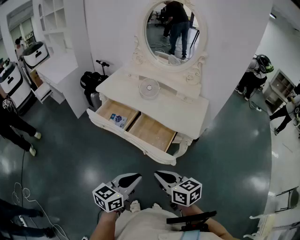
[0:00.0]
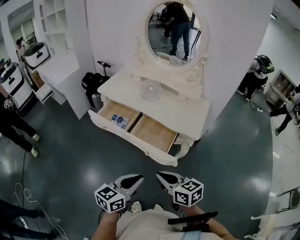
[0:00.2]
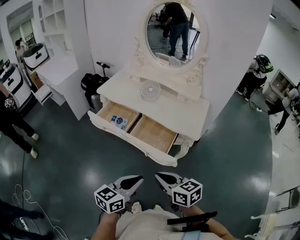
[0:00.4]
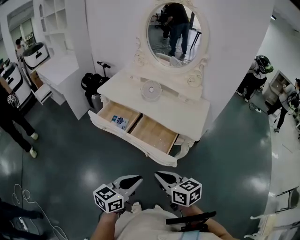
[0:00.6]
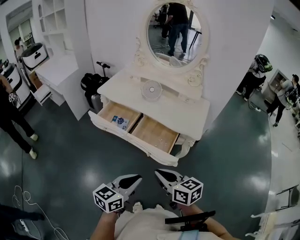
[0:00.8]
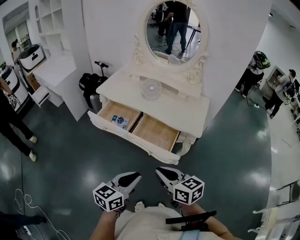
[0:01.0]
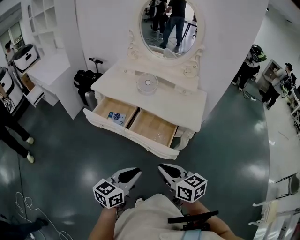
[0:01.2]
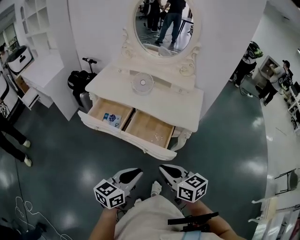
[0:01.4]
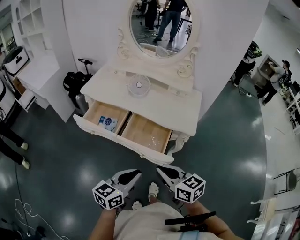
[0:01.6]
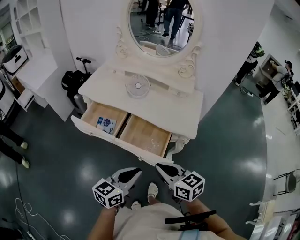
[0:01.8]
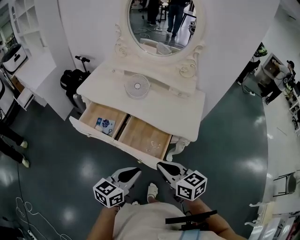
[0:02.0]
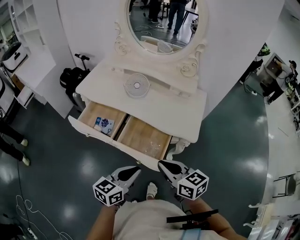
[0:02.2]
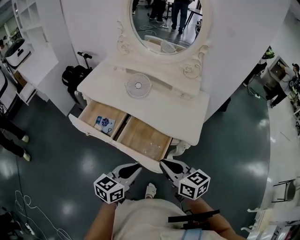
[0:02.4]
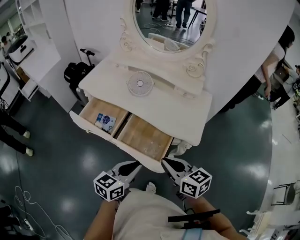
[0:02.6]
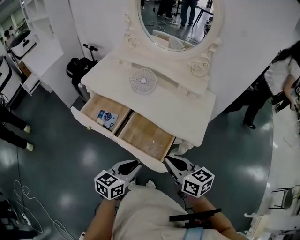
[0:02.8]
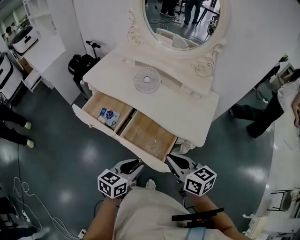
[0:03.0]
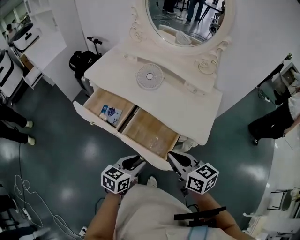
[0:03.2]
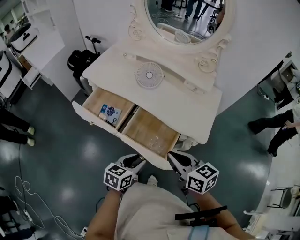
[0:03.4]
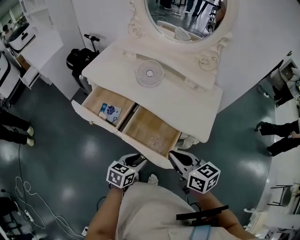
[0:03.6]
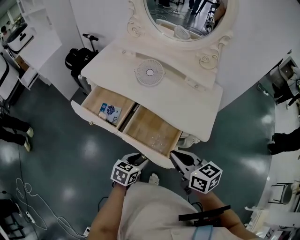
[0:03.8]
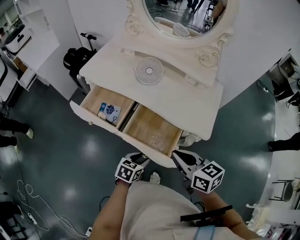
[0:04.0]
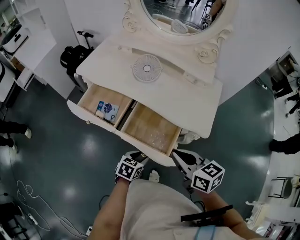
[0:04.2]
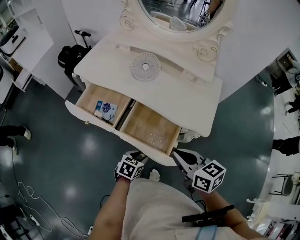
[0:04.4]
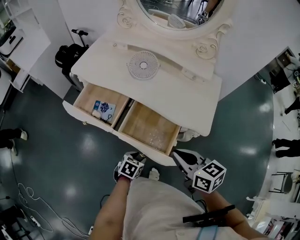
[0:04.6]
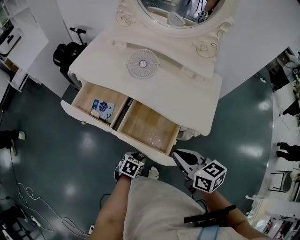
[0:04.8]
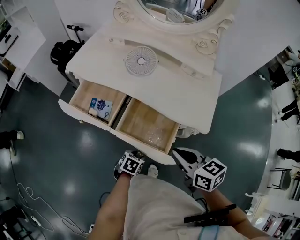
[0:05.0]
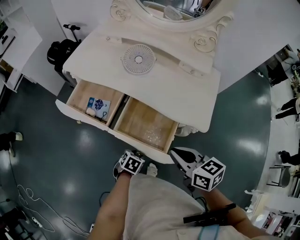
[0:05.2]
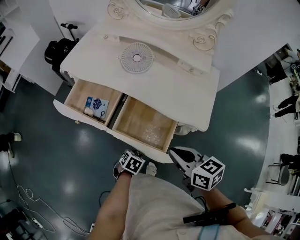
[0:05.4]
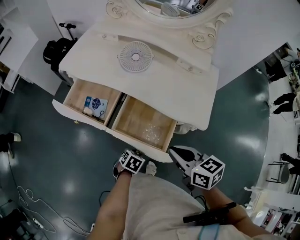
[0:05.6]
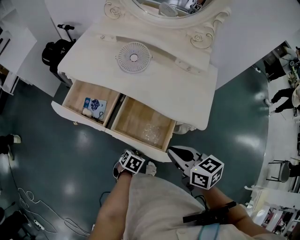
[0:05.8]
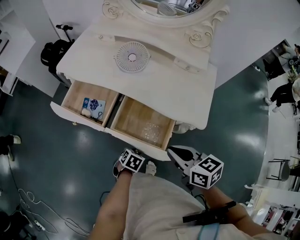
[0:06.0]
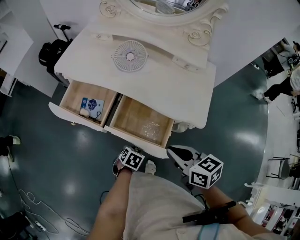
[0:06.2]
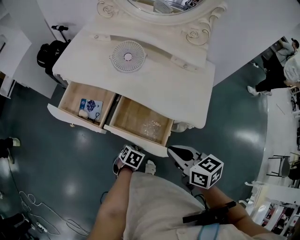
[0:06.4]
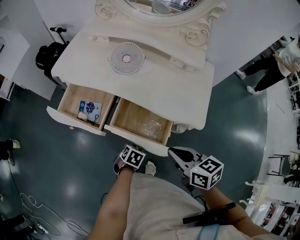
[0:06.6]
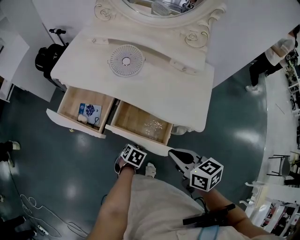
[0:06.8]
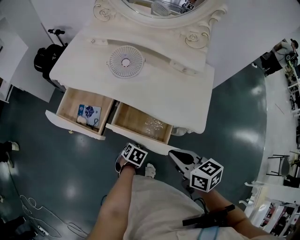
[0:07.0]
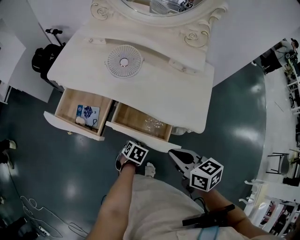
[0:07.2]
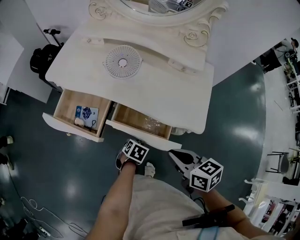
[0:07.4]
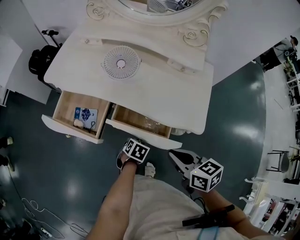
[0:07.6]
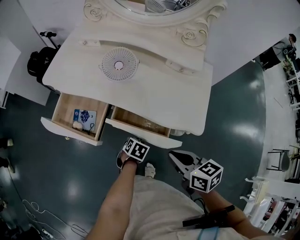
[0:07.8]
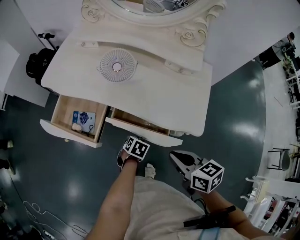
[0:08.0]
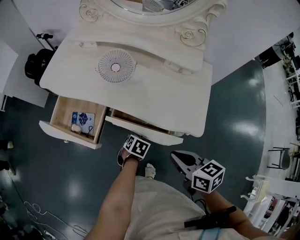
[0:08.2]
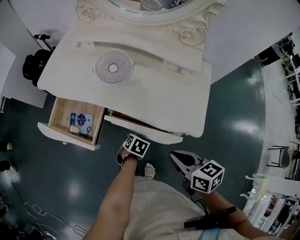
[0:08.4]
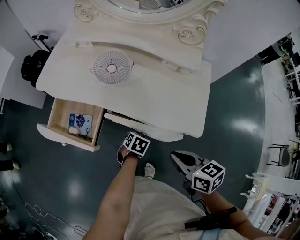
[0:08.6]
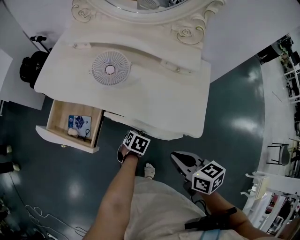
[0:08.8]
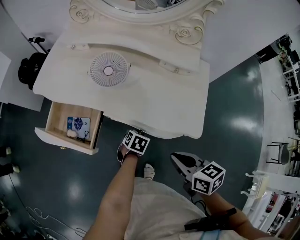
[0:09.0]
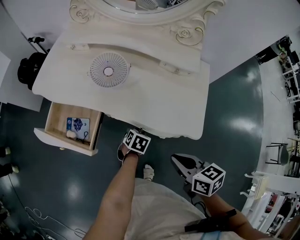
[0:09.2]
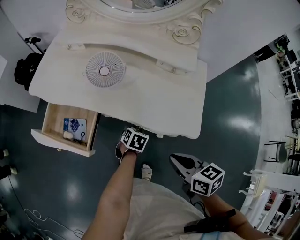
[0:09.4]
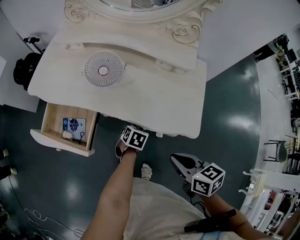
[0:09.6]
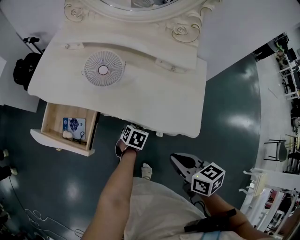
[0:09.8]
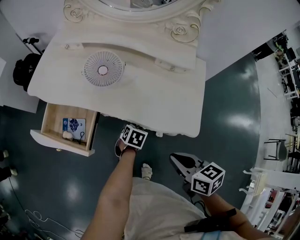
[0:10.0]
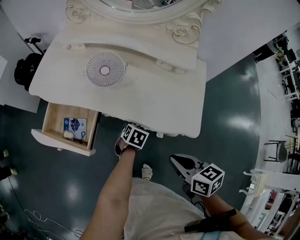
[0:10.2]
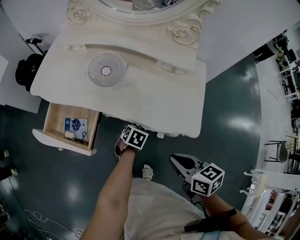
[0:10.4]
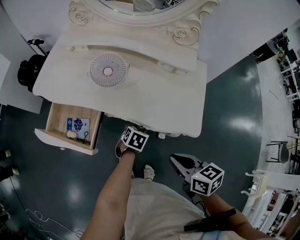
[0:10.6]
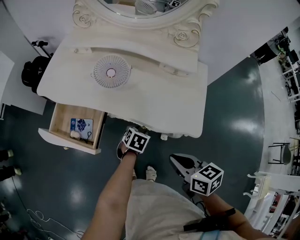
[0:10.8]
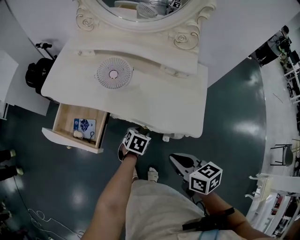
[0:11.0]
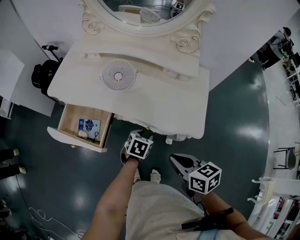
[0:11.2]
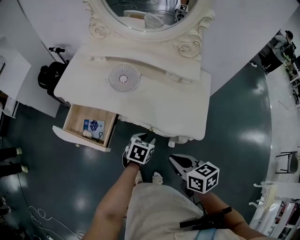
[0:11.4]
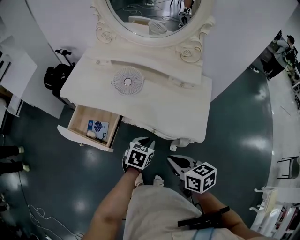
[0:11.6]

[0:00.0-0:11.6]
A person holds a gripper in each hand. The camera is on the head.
0:00.0 to 0:01.4: The left gripper moves about 5 cm.
0:01.4 to 0:02.8: The right gripper shifts about 15 cm forward. The left gripper goes approximately 15 cm forward and downward.
0:02.8 to 0:04.4: The left gripper goes approximately 20 cm downward, turns by roughly 30 degrees, and opens its fingers.
0:04.4 to 0:05.8: The left gripper travels downward by approximately 10 cm.
0:05.8 to 0:07.2: The left gripper travels forward by some 10 cm.
0:07.2 to 0:08.8: The right gripper moves some 5 cm, while the left gripper shifts approximately 10 cm forward.
0:08.8 to 0:10.2: The grippers move only a little.
0:10.2 to 0:11.6: The right gripper changes place by about 5 cm. The left gripper goes roughly 15 cm upward and backward.

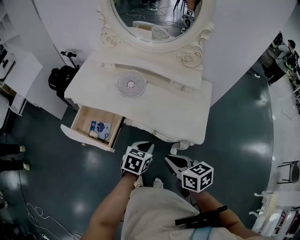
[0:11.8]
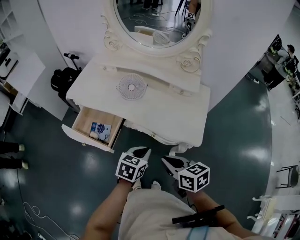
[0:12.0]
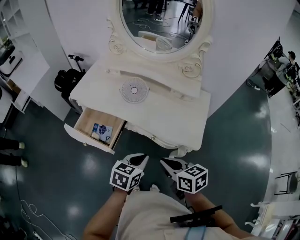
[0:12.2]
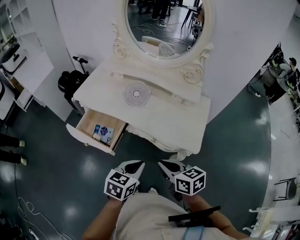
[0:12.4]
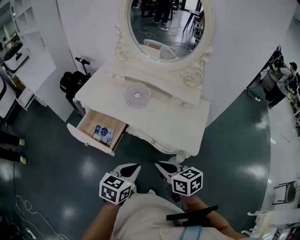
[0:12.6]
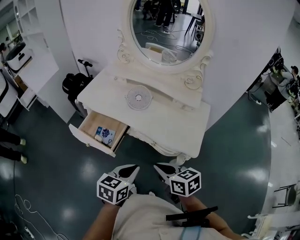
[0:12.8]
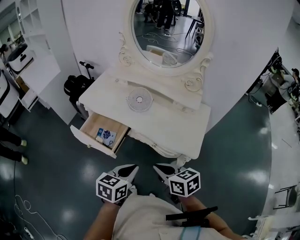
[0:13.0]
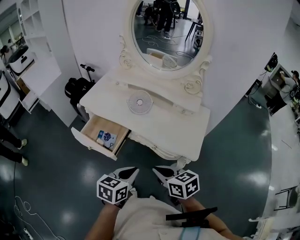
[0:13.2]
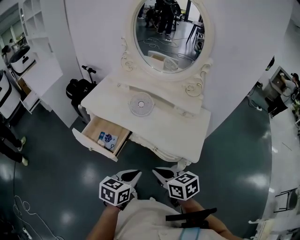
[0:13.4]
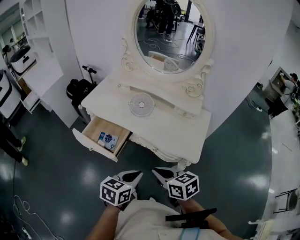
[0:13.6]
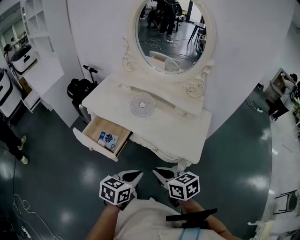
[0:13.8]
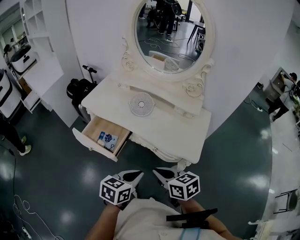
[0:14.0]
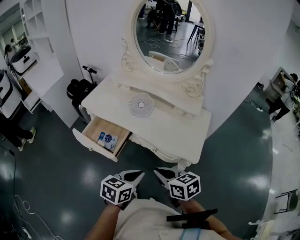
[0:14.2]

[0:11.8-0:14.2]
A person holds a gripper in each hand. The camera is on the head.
0:11.8 to 0:13.0: The left gripper shifts roughly 15 cm upward, backward and to the left; the right gripper moves about 5 cm.
0:13.0 to 0:14.2: The grippers stay close to where they were, moving slightly.

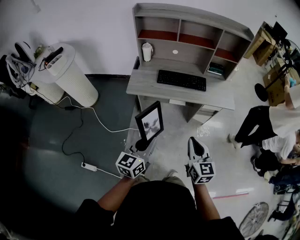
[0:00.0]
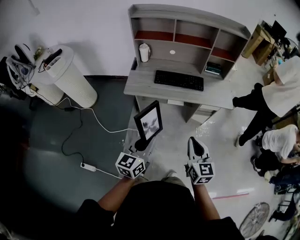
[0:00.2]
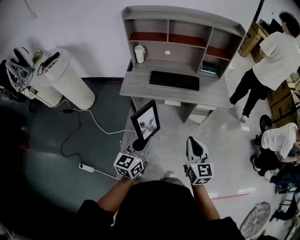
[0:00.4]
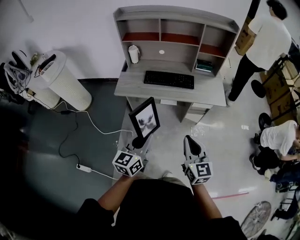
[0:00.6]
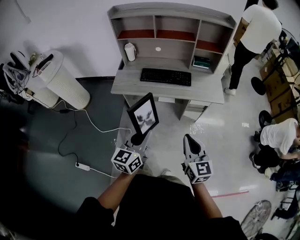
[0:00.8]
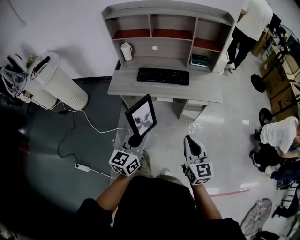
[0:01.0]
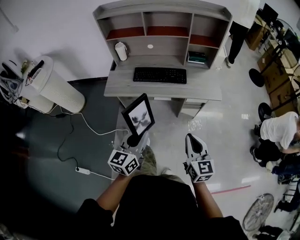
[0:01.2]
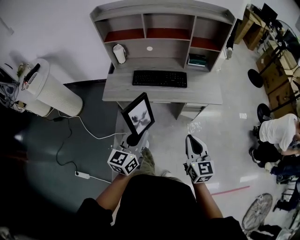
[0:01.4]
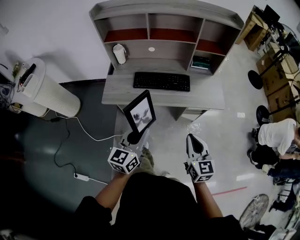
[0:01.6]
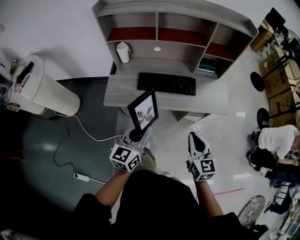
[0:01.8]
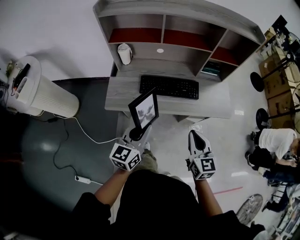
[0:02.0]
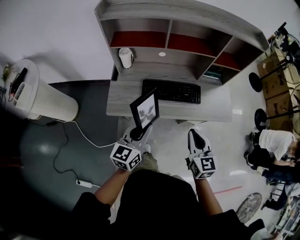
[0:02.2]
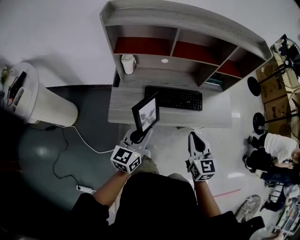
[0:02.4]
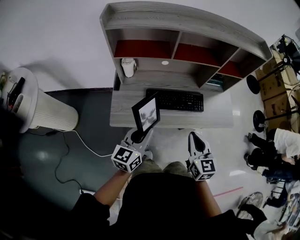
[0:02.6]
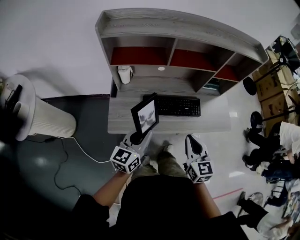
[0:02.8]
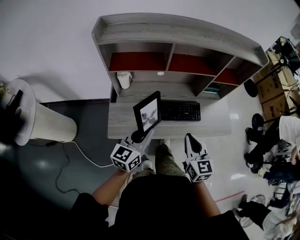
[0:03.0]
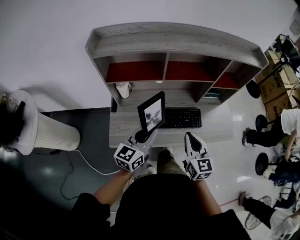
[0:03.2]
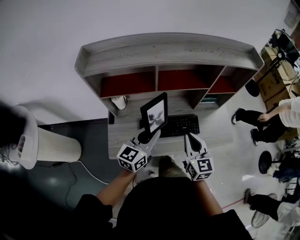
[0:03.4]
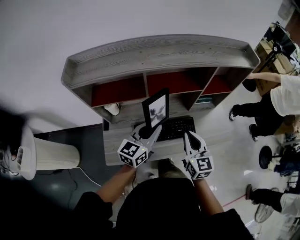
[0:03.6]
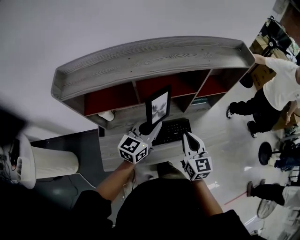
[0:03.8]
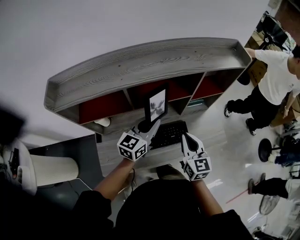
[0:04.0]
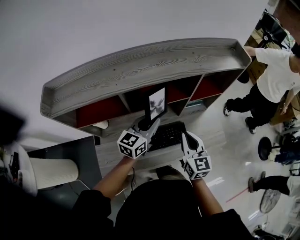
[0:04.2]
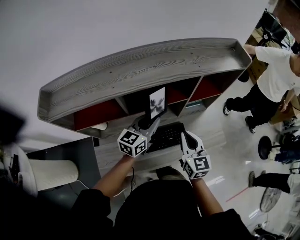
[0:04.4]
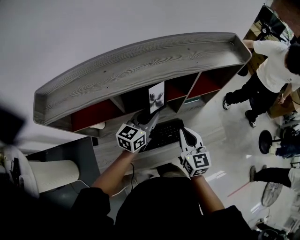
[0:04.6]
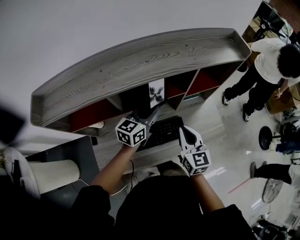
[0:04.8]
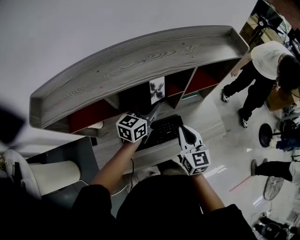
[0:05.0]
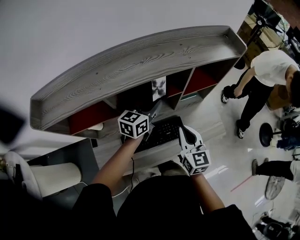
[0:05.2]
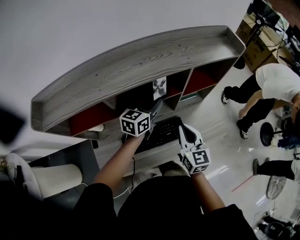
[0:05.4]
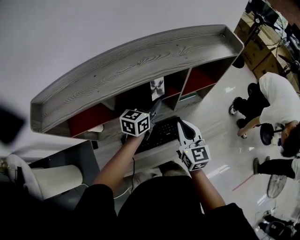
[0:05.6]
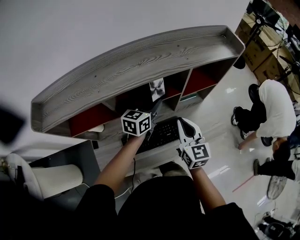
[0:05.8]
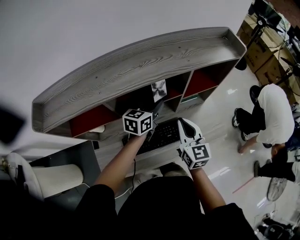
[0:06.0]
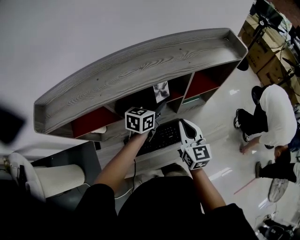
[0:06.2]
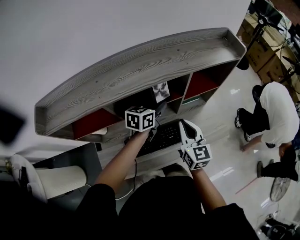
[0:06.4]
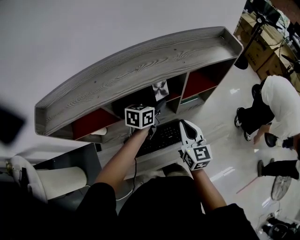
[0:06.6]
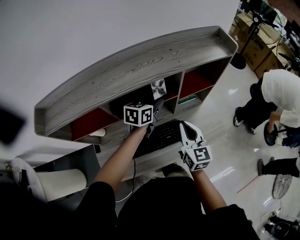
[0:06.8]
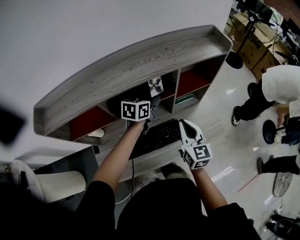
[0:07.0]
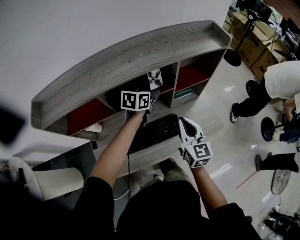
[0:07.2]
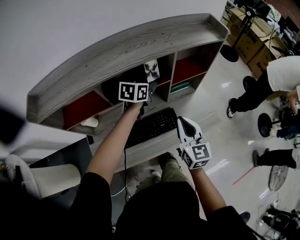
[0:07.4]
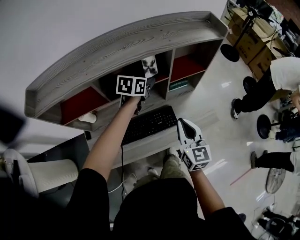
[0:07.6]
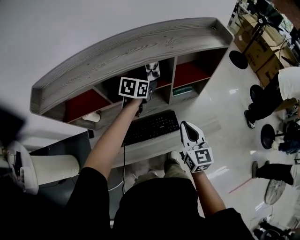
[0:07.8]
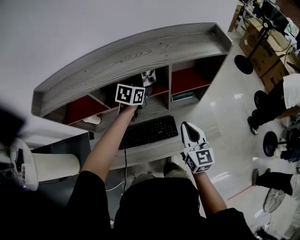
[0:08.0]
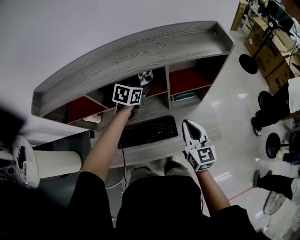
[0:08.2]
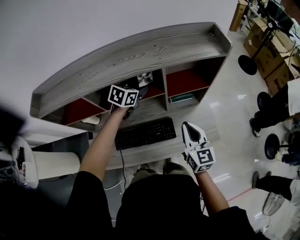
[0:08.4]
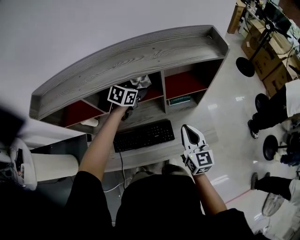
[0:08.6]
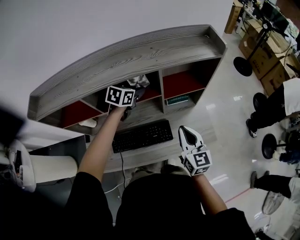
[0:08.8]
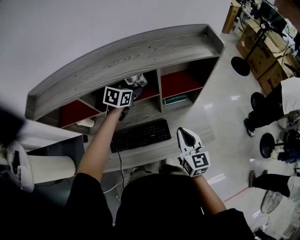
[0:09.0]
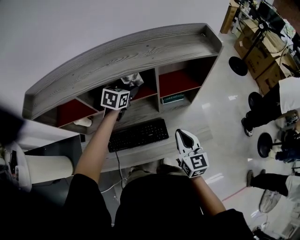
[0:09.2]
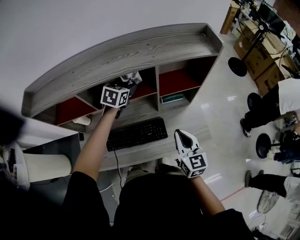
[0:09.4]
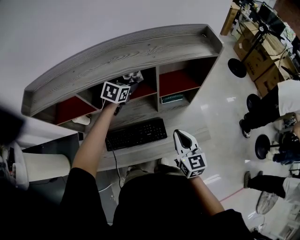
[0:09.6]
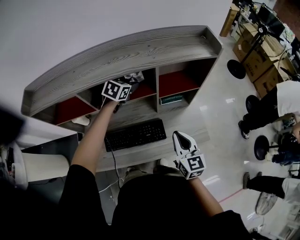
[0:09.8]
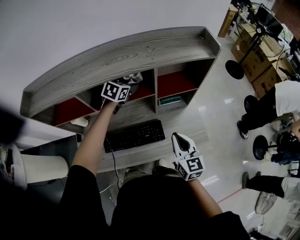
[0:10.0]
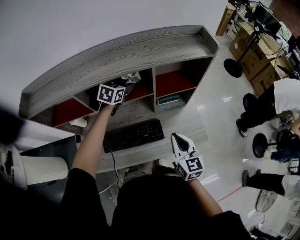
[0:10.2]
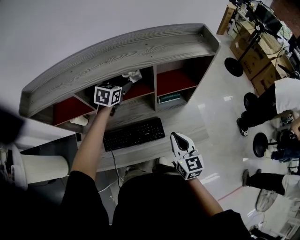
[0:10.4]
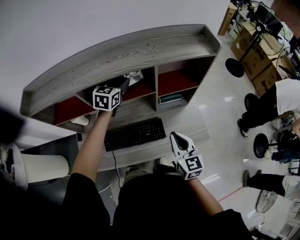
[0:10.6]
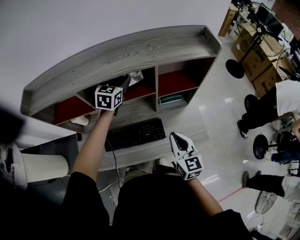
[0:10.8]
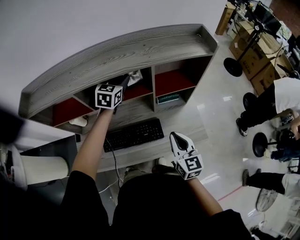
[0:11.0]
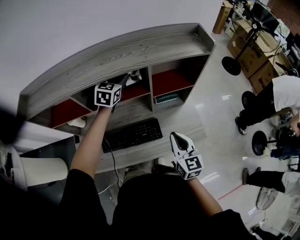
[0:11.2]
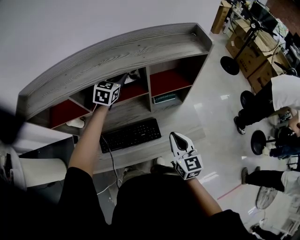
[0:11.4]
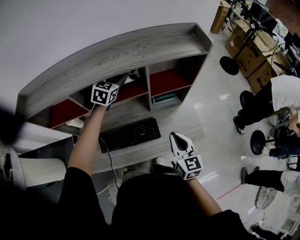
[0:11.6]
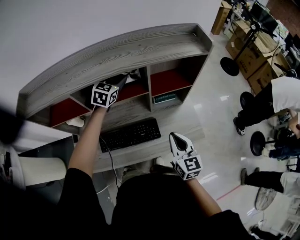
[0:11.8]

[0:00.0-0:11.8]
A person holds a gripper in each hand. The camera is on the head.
0:00.0 to 0:01.4: Both grippers travel together to the right and forward, about 15 cm.
0:01.4 to 0:03.0: Both grippers travel together forward and to the left, approximately 35 cm.
0:03.0 to 0:04.4: The two grippers go roughly 25 cm forward.
0:04.4 to 0:06.0: The left gripper is displaced forward by about 10 cm.
0:06.0 to 0:07.4: The right gripper shifts approximately 5 cm backward.
0:07.4 to 0:08.8: The right gripper shifts roughly 10 cm to the right and forward.
0:08.8 to 0:10.4: The left gripper shifts by about 5 cm, and opens its fingers.
0:10.4 to 0:11.8: The grippers make only small movements.
